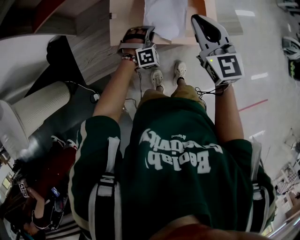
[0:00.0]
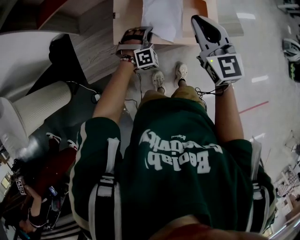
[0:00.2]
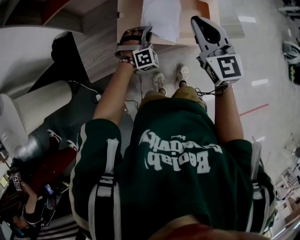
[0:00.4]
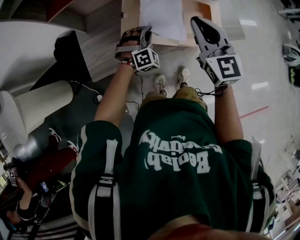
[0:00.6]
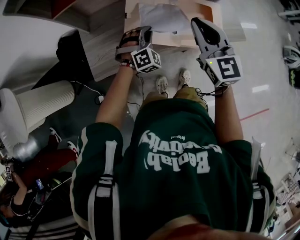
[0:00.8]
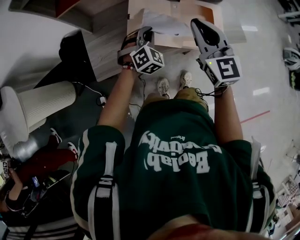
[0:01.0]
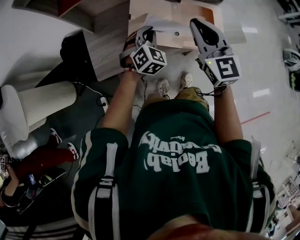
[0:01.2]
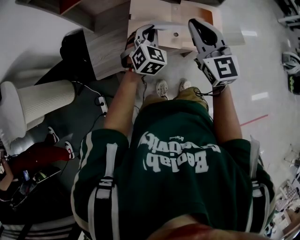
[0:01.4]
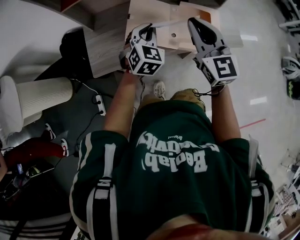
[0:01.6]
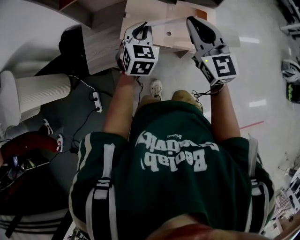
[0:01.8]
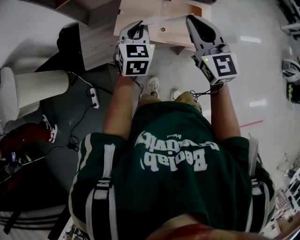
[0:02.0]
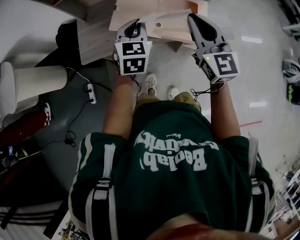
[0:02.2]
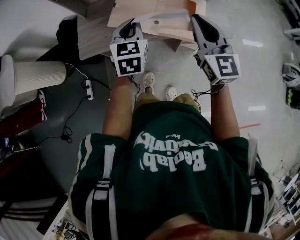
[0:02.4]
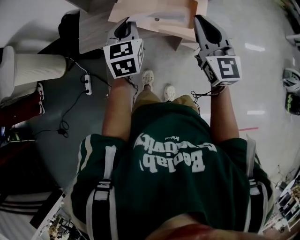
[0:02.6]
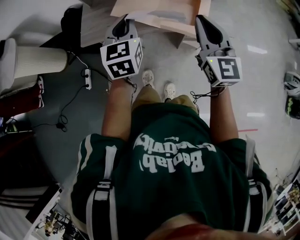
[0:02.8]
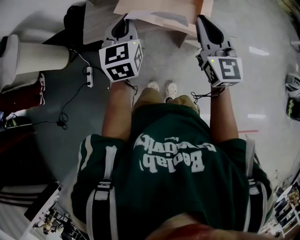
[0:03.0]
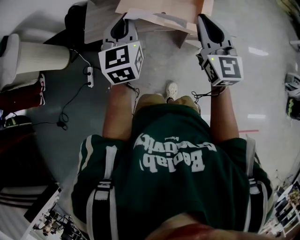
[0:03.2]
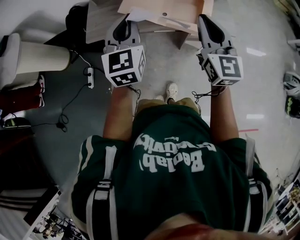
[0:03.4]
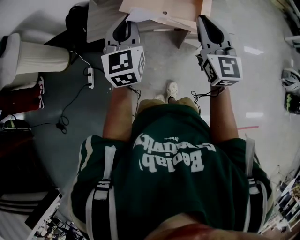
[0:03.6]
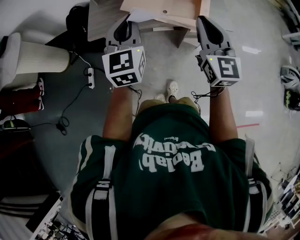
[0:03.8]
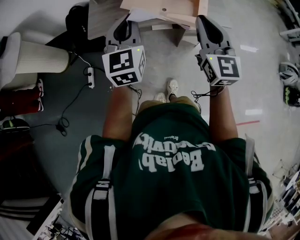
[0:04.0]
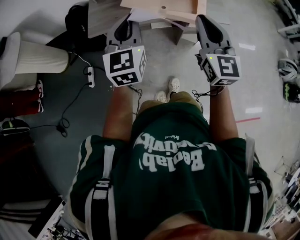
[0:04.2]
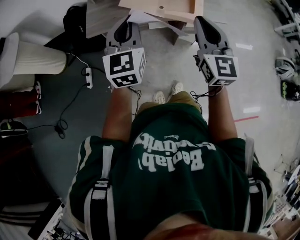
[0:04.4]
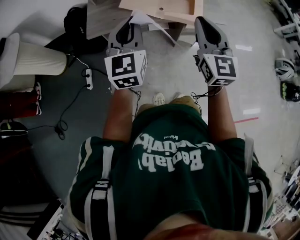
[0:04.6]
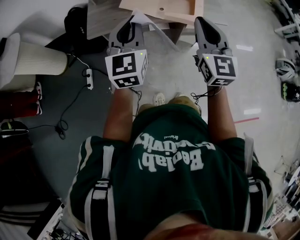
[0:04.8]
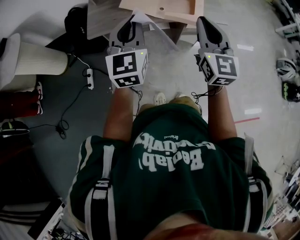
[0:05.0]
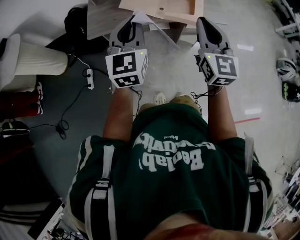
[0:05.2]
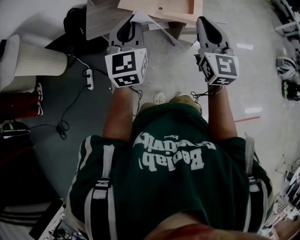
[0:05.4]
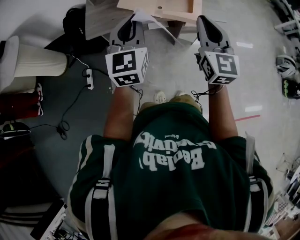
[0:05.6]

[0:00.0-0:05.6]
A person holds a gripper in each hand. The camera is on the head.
0:00.0 to 0:01.4: The right gripper travels upward, to the left and backward by about 10 cm. The left gripper heads upward, covering some 20 cm, and rolls counterclockwise, seen from behind, by some 40 degrees.
0:01.4 to 0:02.8: The left gripper heads backward and upward, covering some 20 cm, and swivels about 40 degrees. Meanwhile the right gripper moves backward and to the right, some 25 cm.
0:02.8 to 0:04.2: The right gripper travels backward and to the left by about 20 cm. The left gripper goes approximately 20 cm backward, to the left and upward.
0:04.2 to 0:05.6: The grippers make only small movements.

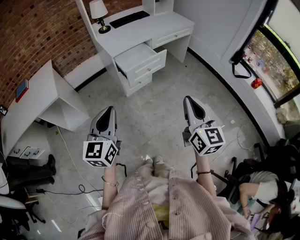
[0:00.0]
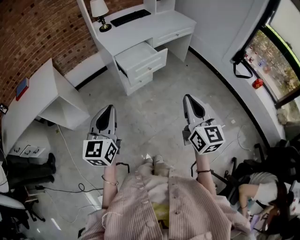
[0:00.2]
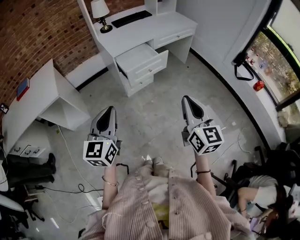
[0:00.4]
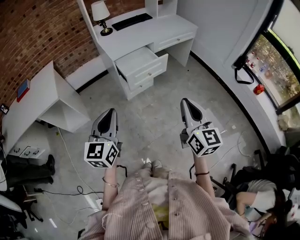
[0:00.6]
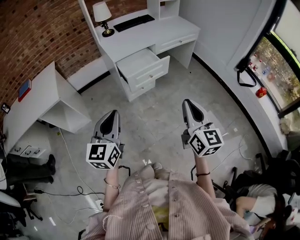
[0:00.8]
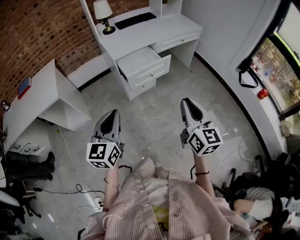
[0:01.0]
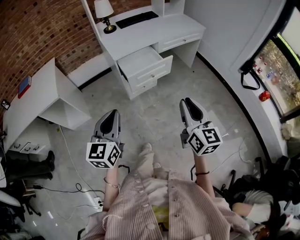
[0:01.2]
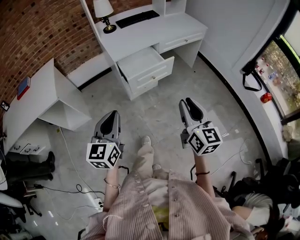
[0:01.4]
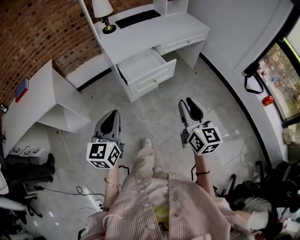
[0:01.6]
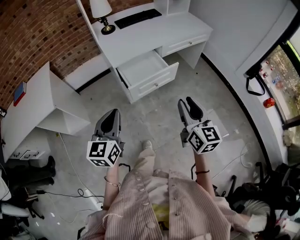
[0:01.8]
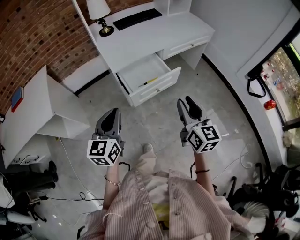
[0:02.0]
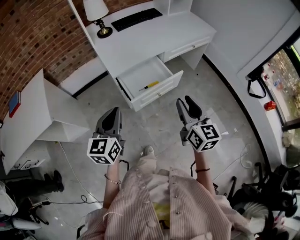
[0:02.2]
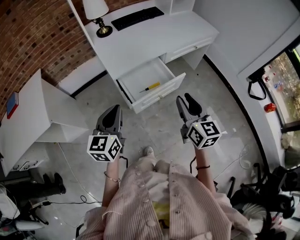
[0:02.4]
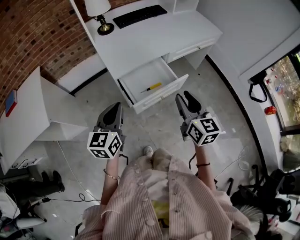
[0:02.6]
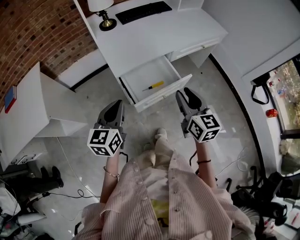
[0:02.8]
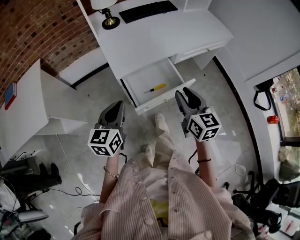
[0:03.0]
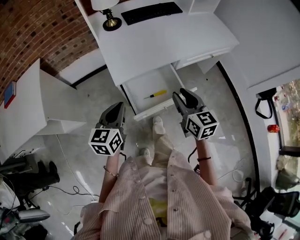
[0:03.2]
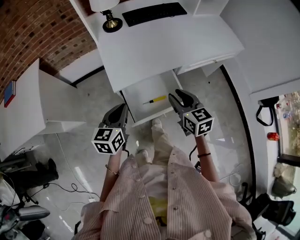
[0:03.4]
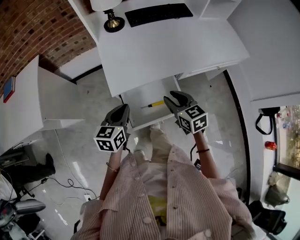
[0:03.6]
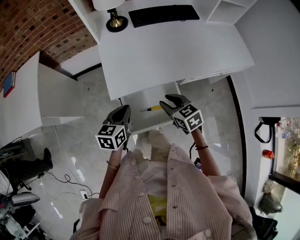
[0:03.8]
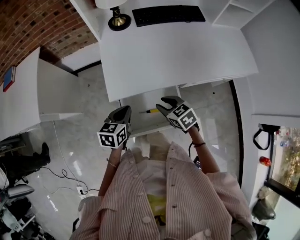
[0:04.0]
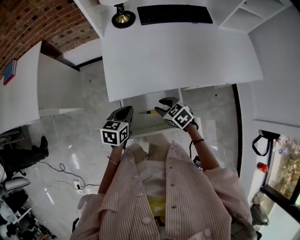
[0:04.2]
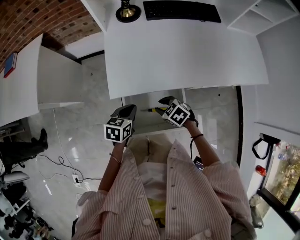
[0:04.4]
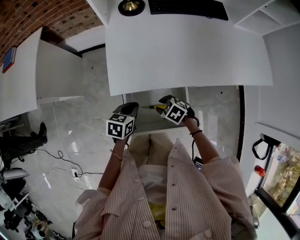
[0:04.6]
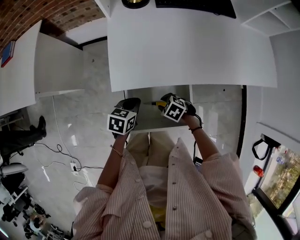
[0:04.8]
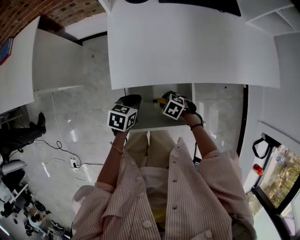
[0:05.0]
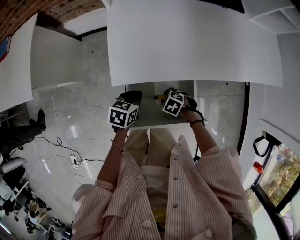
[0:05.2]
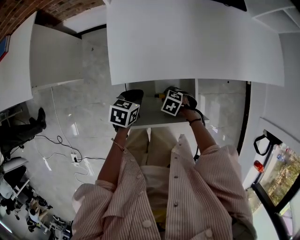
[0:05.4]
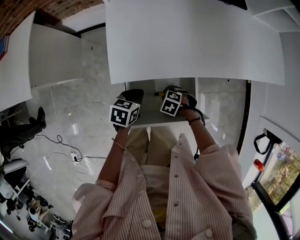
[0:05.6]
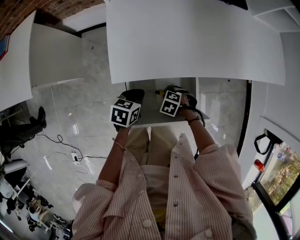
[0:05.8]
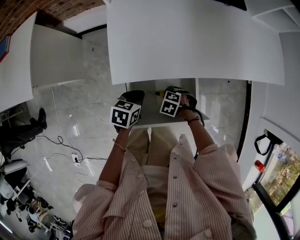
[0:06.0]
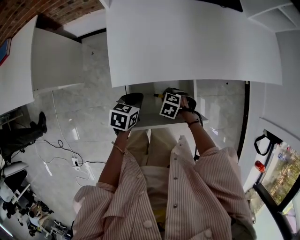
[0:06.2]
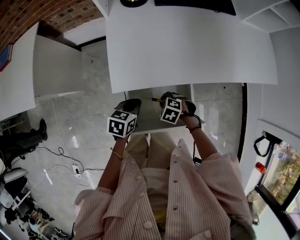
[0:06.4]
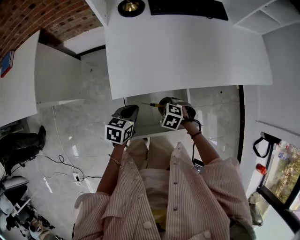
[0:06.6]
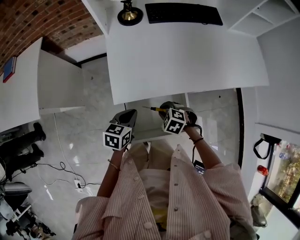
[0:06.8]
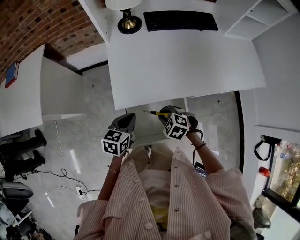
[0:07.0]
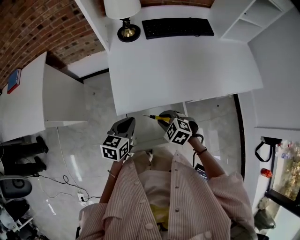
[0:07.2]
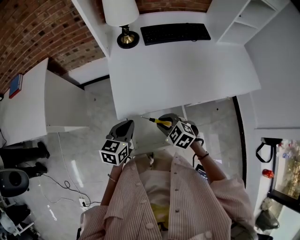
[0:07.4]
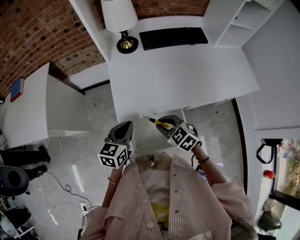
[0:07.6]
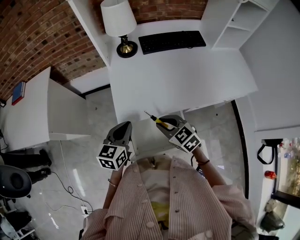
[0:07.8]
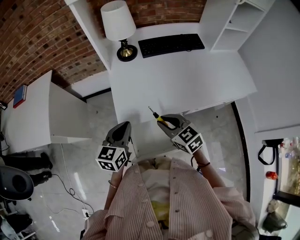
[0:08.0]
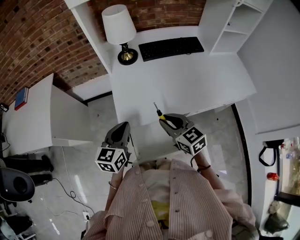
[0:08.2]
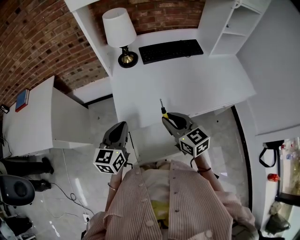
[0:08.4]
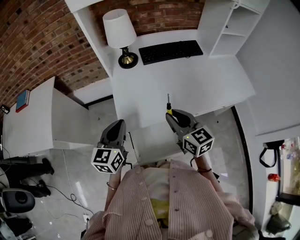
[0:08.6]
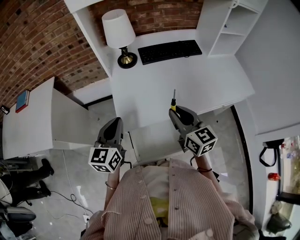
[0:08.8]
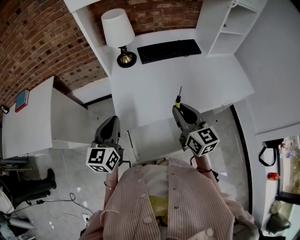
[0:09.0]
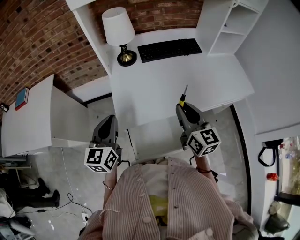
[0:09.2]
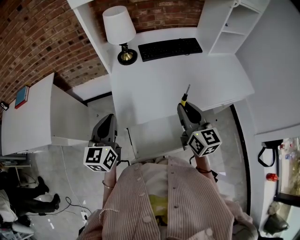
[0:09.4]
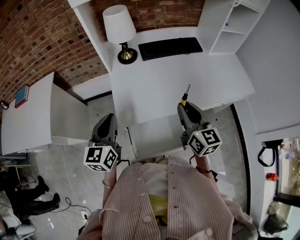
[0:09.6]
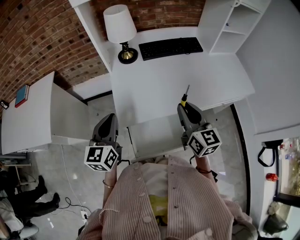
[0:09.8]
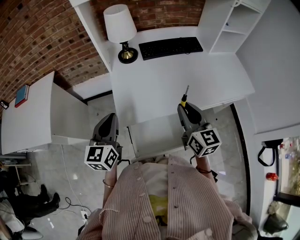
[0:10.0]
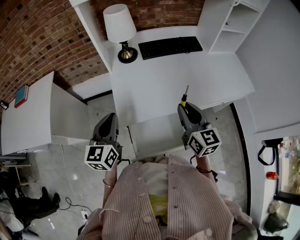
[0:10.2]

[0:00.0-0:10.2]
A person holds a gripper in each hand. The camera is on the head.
0:00.0 to 0:01.4: The two grippers go roughly 10 cm forward.
0:01.4 to 0:03.0: The grippers both shift forward by roughly 35 cm.
0:03.0 to 0:04.4: Both grippers move downward, roughly 20 cm. The right gripper tilts its fingers approximately 40 degrees downward. The left gripper changes its angle by some 30 degrees.
0:04.4 to 0:05.8: The left gripper goes approximately 5 cm downward. Meanwhile the right gripper shifts some 15 cm downward, and rotates about 30 degrees.
0:05.8 to 0:07.2: The two grippers go roughly 15 cm upward. The left gripper changes its angle by some 20 degrees. Meanwhile the right gripper rotates roughly 30 degrees.
0:07.2 to 0:08.8: The two grippers go approximately 20 cm upward. The right gripper tilts its fingers approximately 50 degrees upward; the left gripper swivels some 30 degrees.
0:08.8 to 0:10.2: The grippers stay close to where they were, moving slightly.

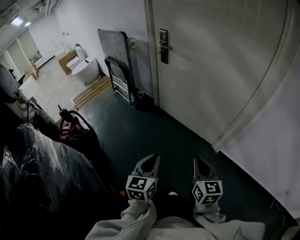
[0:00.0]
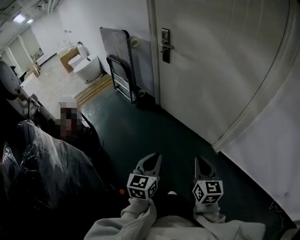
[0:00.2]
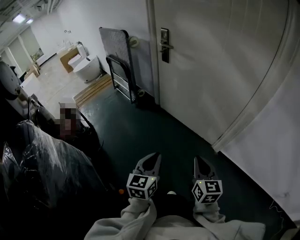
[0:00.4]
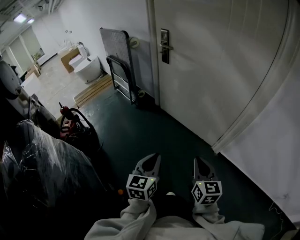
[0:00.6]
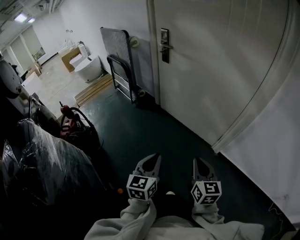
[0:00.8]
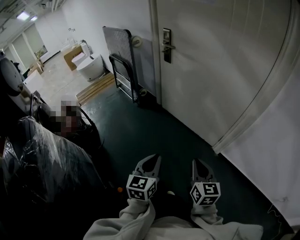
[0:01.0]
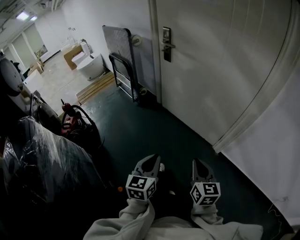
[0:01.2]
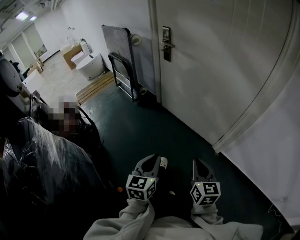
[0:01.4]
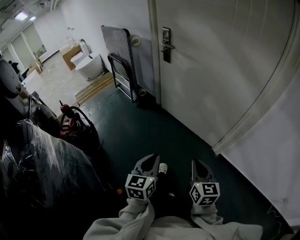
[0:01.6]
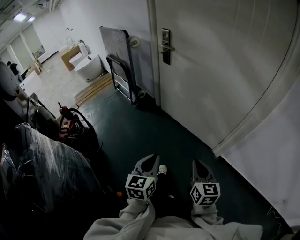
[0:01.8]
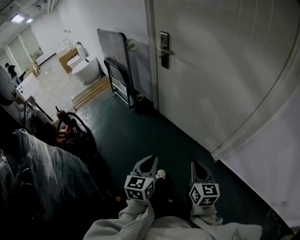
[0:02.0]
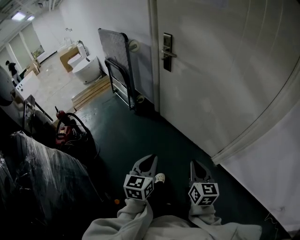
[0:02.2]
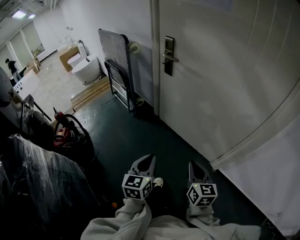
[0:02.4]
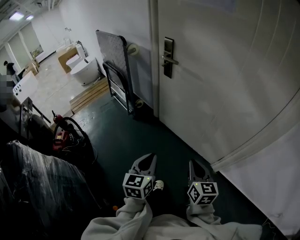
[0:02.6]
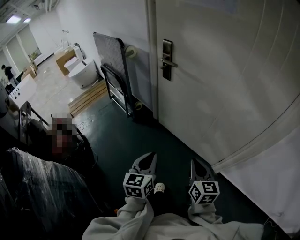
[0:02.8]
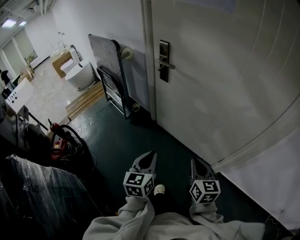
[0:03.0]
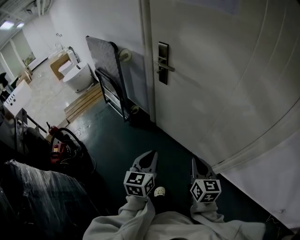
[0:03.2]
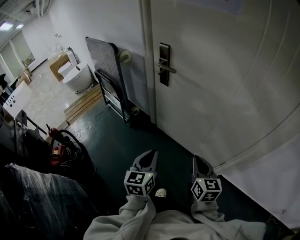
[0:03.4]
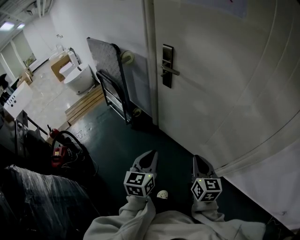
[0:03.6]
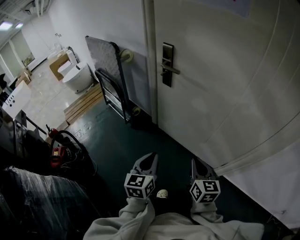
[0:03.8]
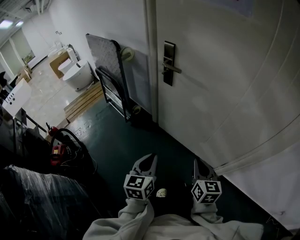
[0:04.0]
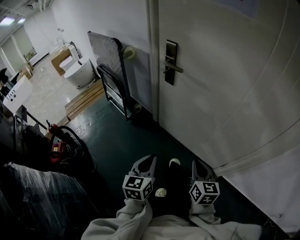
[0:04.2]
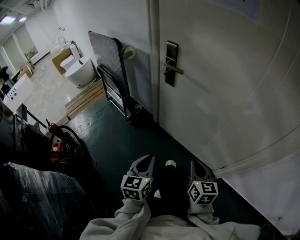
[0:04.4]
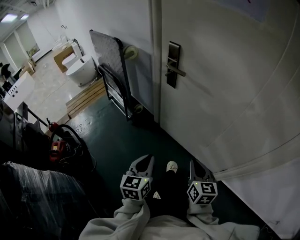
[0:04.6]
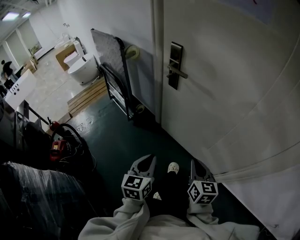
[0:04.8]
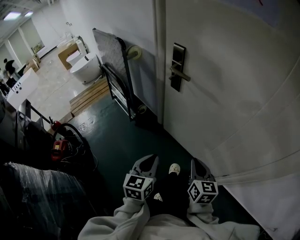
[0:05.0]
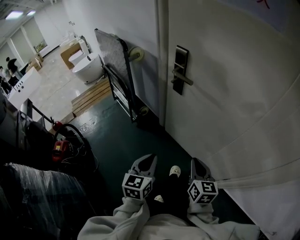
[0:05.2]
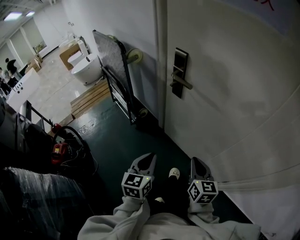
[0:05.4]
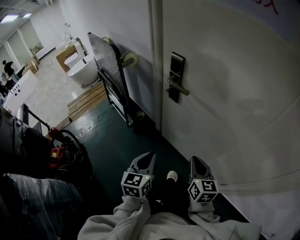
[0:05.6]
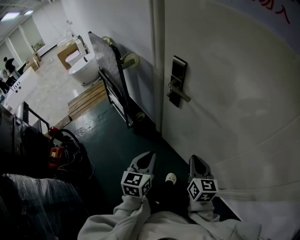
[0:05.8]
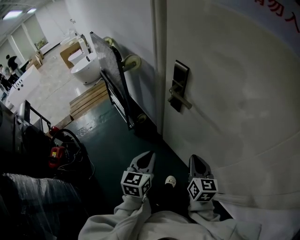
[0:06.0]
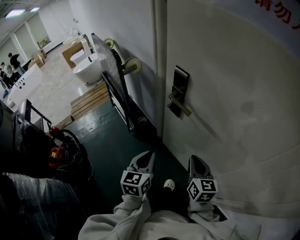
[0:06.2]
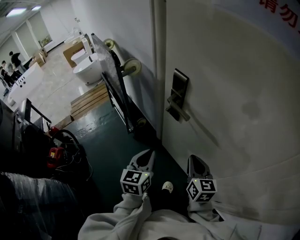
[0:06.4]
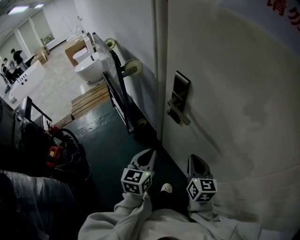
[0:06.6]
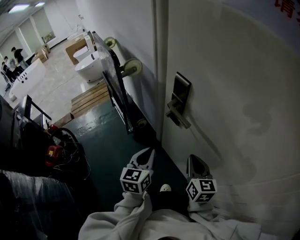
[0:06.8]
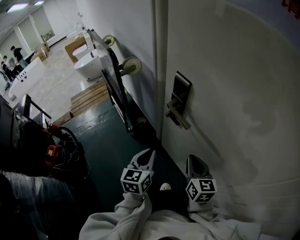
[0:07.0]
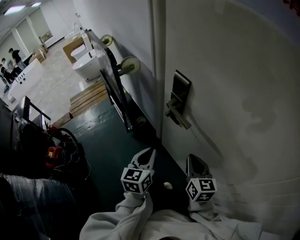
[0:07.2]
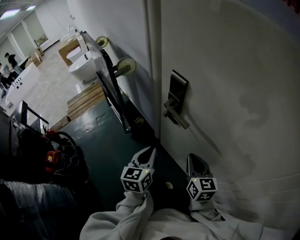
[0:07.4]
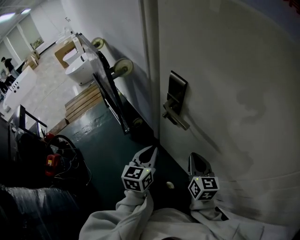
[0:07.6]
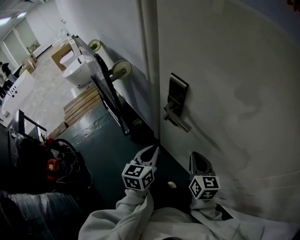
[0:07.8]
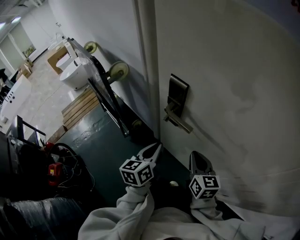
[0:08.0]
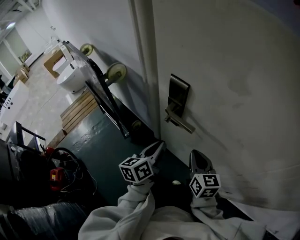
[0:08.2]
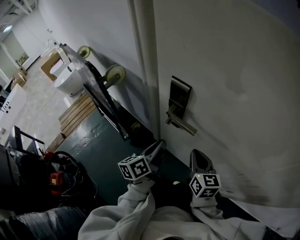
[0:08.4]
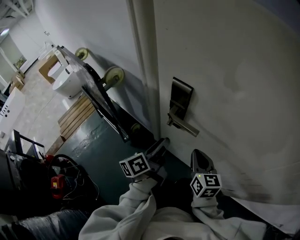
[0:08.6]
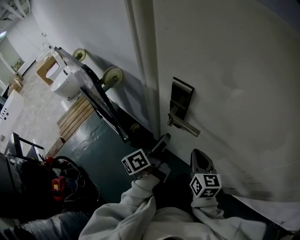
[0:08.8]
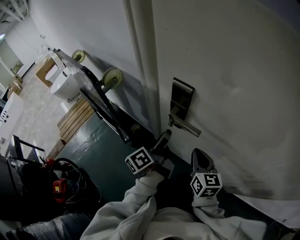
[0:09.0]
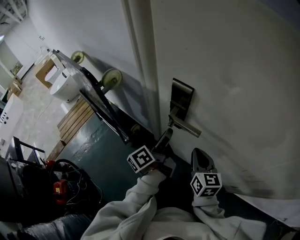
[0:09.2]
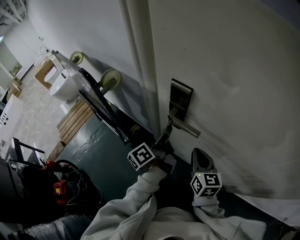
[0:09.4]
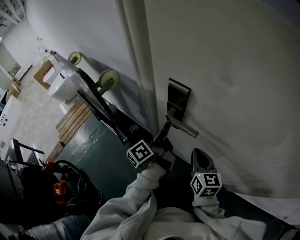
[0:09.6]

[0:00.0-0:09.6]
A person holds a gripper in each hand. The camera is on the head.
0:00.0 to 0:01.6: There are only small adjustments of the grippers.
0:01.6 to 0:03.2: The two grippers go approximately 25 cm forward.
0:03.2 to 0:04.8: Both grippers travel together forward, roughly 10 cm.
0:04.8 to 0:06.4: The two grippers go roughly 25 cm forward.
0:06.4 to 0:08.0: The left gripper travels forward by about 10 cm, and swivels approximately 20 degrees; the right gripper goes some 5 cm forward.
0:08.0 to 0:09.6: The left gripper shifts about 10 cm forward, rolls counterclockwise, seen from behind, by some 40 degrees, and opens.
